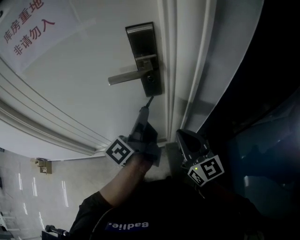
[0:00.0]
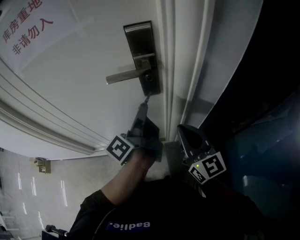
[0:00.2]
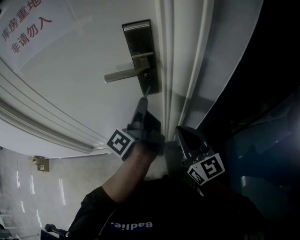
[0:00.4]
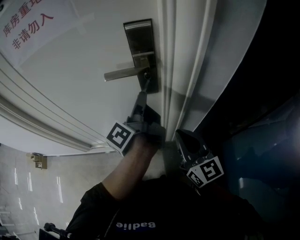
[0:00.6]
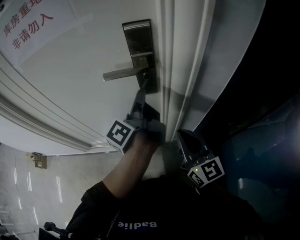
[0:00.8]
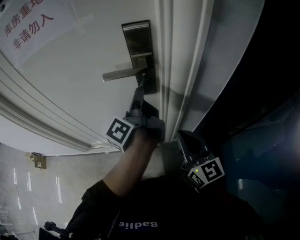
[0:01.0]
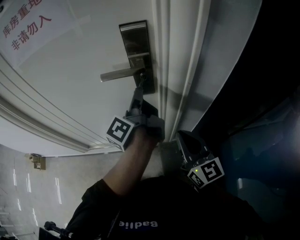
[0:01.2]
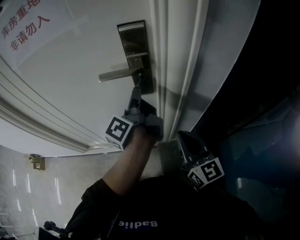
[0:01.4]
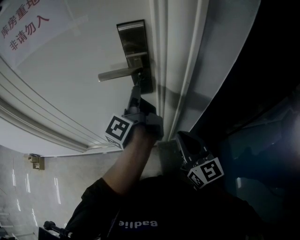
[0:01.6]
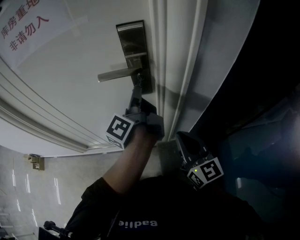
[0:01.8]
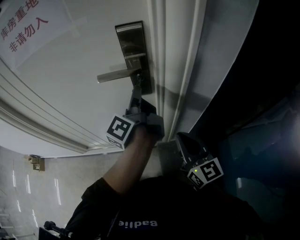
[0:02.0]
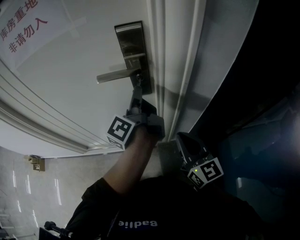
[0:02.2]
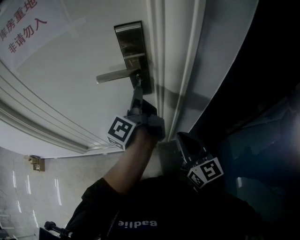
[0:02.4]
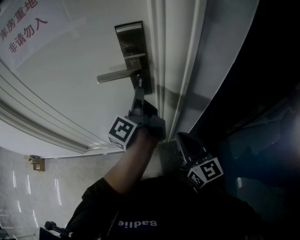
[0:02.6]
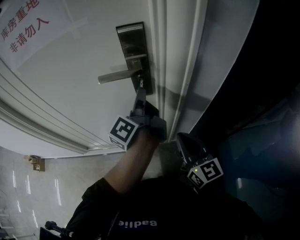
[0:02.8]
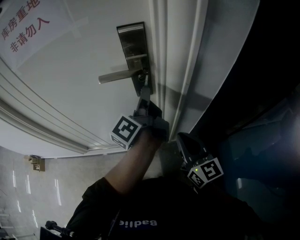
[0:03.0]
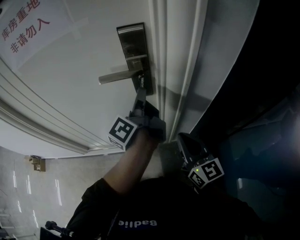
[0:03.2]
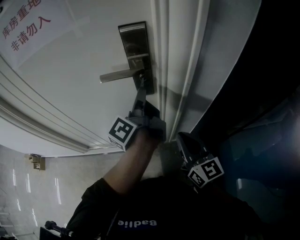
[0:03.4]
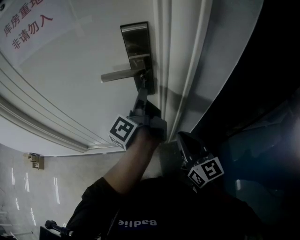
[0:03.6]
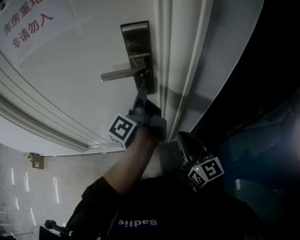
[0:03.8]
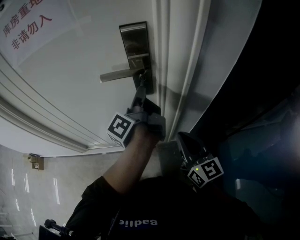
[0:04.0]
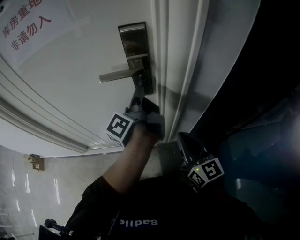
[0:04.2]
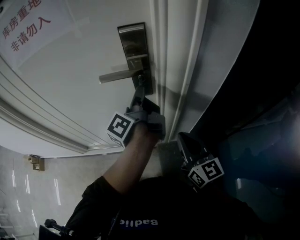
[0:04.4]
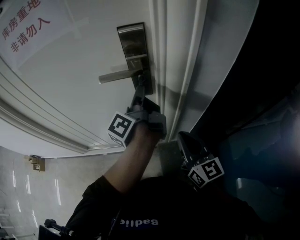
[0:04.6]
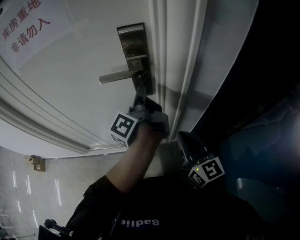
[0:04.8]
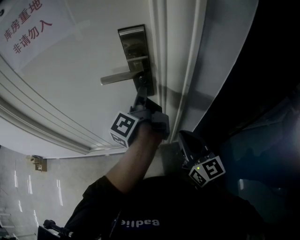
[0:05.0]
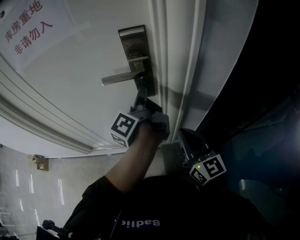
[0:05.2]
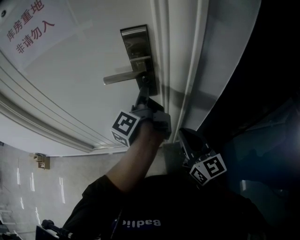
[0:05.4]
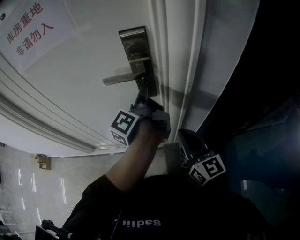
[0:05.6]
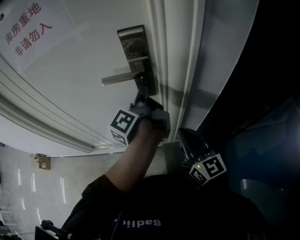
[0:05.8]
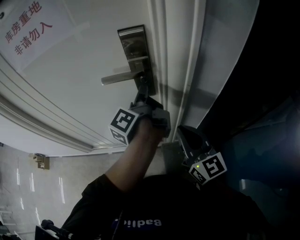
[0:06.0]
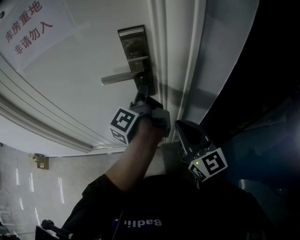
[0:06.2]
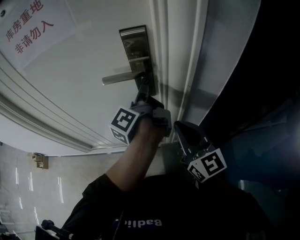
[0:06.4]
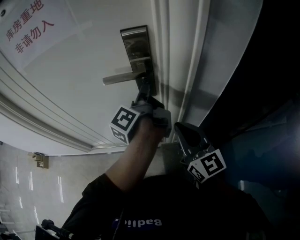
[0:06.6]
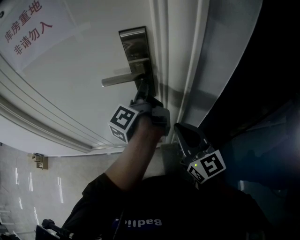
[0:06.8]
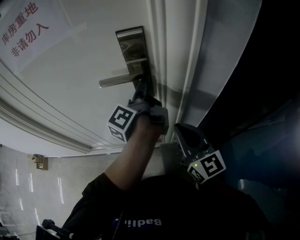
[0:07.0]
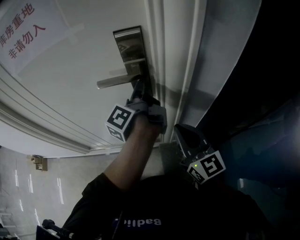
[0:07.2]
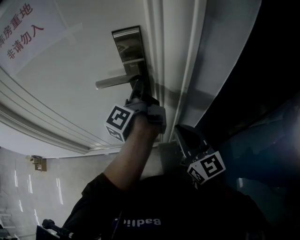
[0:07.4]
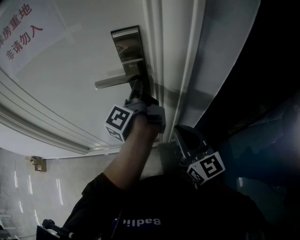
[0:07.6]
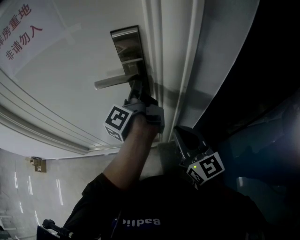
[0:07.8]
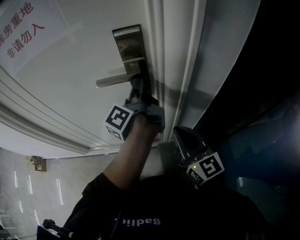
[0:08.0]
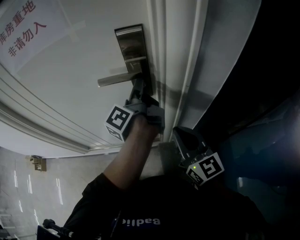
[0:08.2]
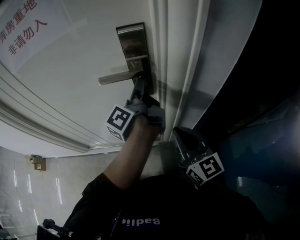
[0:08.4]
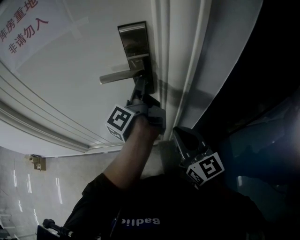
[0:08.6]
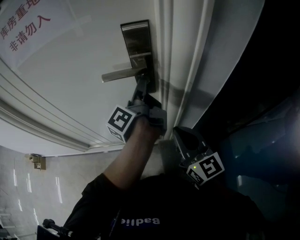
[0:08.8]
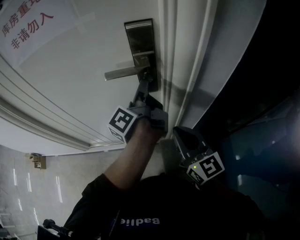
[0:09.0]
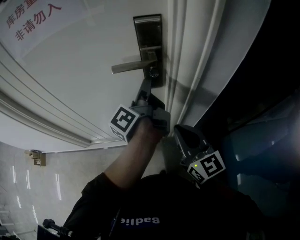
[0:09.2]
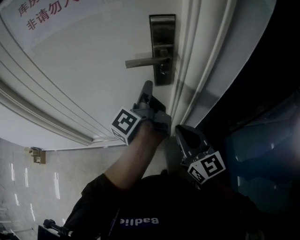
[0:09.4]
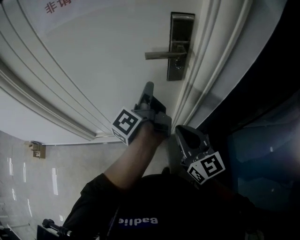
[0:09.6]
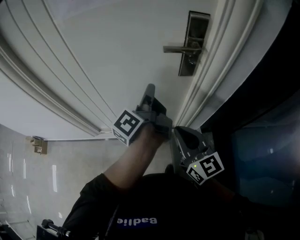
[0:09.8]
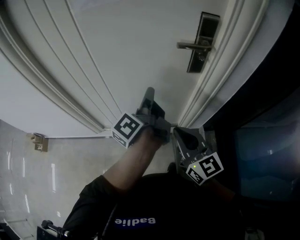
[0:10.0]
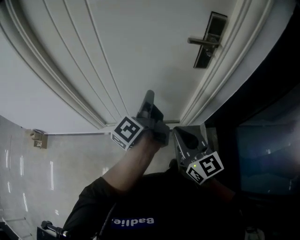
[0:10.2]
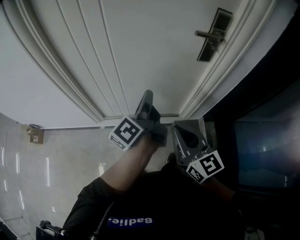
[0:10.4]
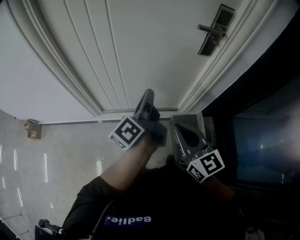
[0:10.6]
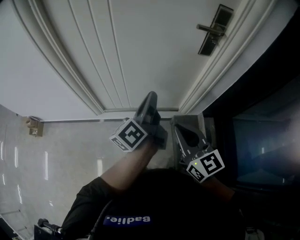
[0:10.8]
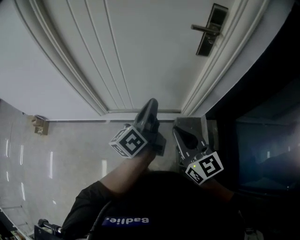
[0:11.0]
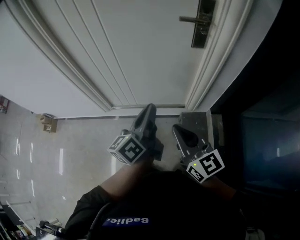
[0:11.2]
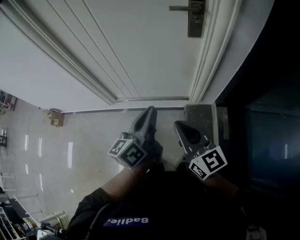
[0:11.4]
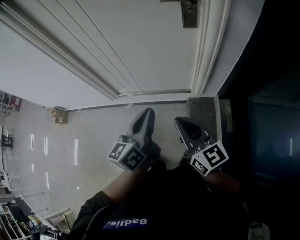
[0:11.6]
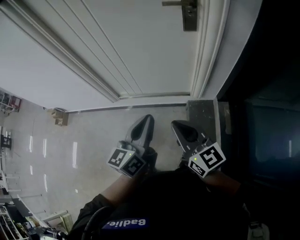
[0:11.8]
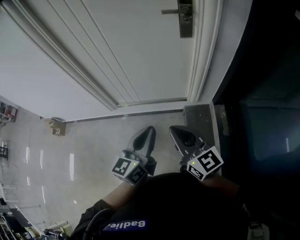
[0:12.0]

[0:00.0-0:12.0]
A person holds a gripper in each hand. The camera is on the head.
0:00.0 to 0:01.6: The left gripper shifts approximately 5 cm forward.
0:01.6 to 0:06.0: The grippers move only a little.
0:06.0 to 0:07.6: The grippers stay close to where they were, moving slightly.
0:07.6 to 0:09.0: The left gripper opens its fingers.
0:09.0 to 0:10.4: Both grippers travel together to the left and backward, about 35 cm. The left gripper closes up.
0:10.4 to 0:12.0: The left gripper shifts about 30 cm backward, and rolls clockwise, seen from behind, by about 50 degrees; the right gripper goes about 15 cm backward.

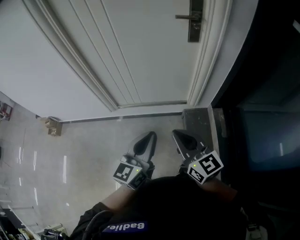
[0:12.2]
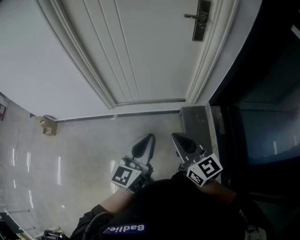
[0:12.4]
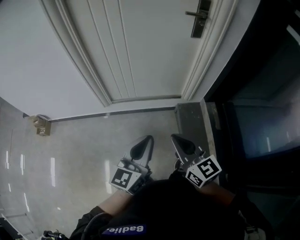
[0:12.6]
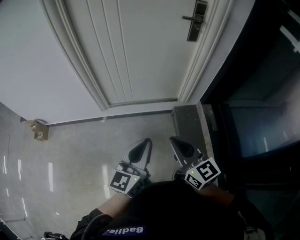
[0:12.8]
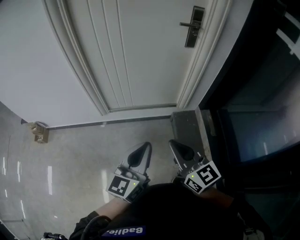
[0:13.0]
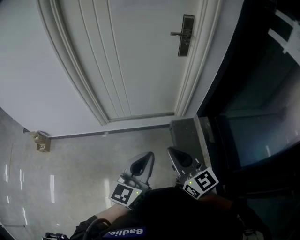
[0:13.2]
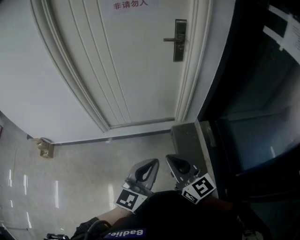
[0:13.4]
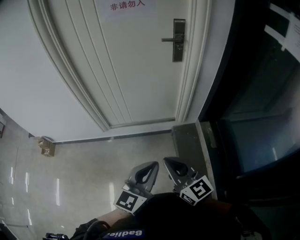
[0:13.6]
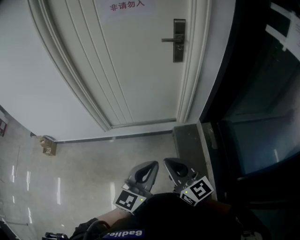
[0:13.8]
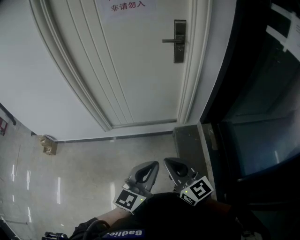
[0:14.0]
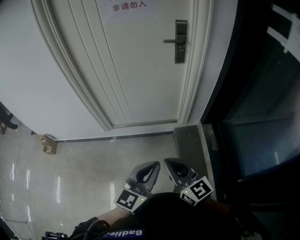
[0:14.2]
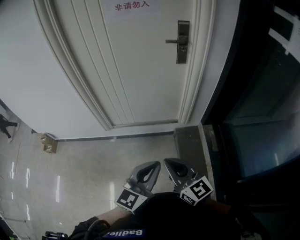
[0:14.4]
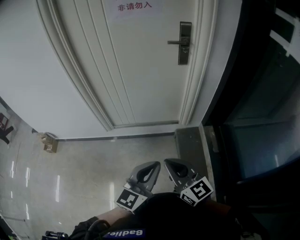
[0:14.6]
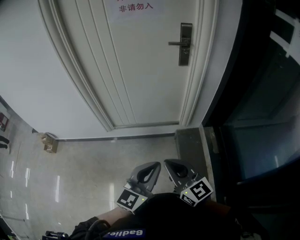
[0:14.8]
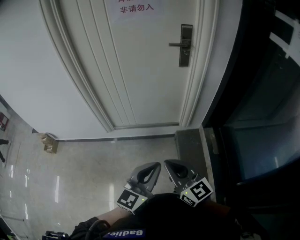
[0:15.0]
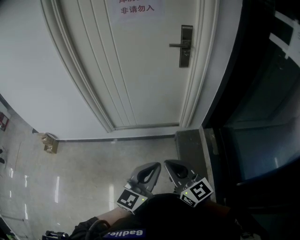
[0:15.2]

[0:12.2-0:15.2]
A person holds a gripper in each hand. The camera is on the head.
0:12.2 to 0:13.8: Both grippers travel together backward, roughly 10 cm. The right gripper goes to the left and returns, approximately 10 cm each way, while the left gripper goes to the left and returns, roughly 10 cm each way.
0:13.8 to 0:15.2: The grippers move only a little.

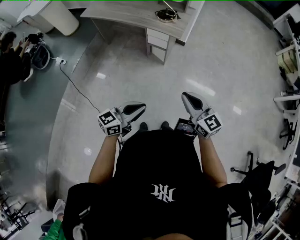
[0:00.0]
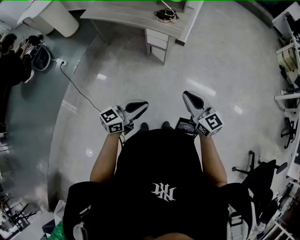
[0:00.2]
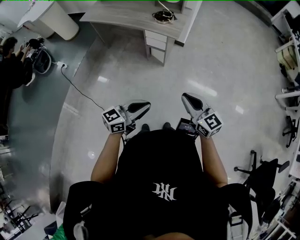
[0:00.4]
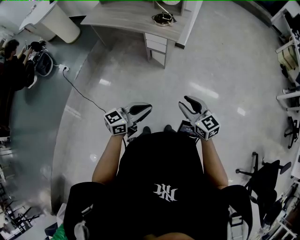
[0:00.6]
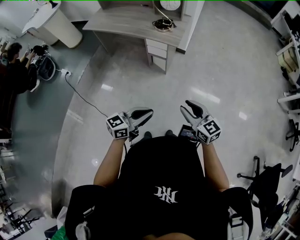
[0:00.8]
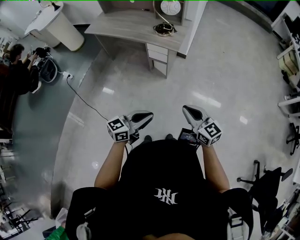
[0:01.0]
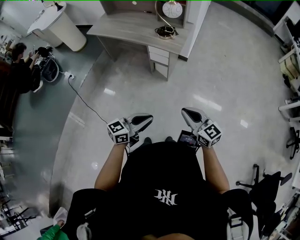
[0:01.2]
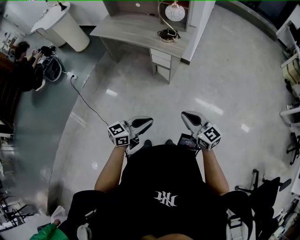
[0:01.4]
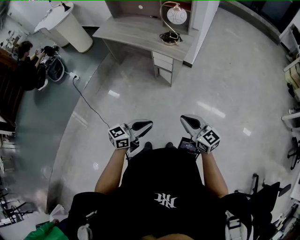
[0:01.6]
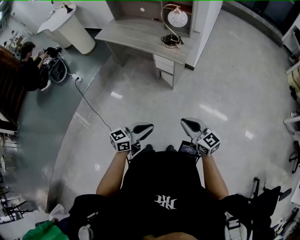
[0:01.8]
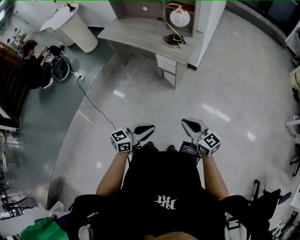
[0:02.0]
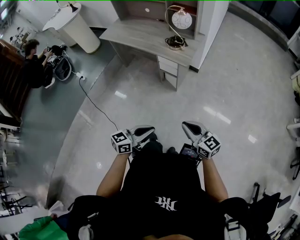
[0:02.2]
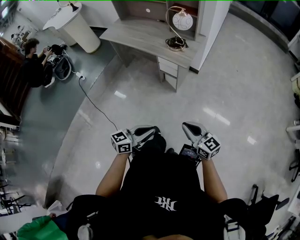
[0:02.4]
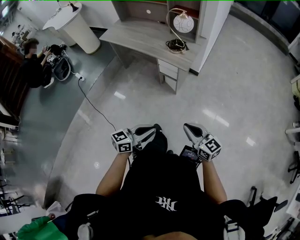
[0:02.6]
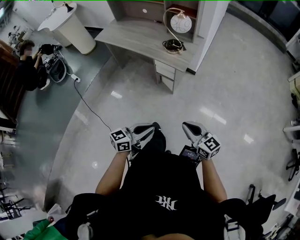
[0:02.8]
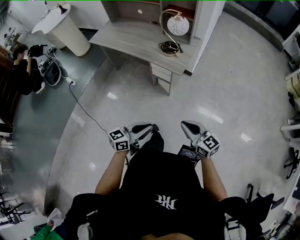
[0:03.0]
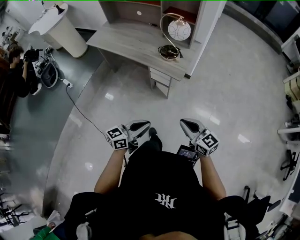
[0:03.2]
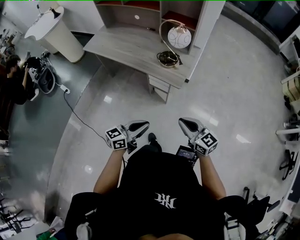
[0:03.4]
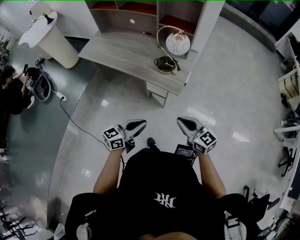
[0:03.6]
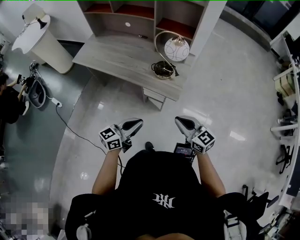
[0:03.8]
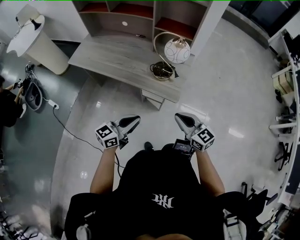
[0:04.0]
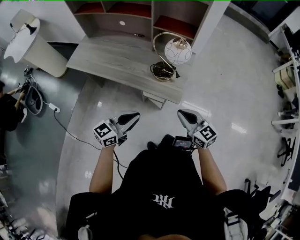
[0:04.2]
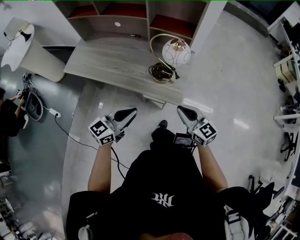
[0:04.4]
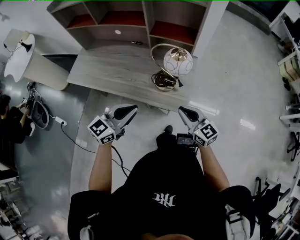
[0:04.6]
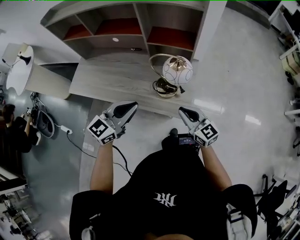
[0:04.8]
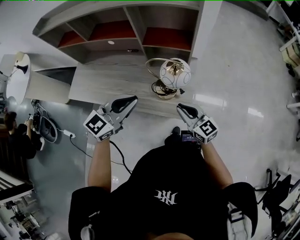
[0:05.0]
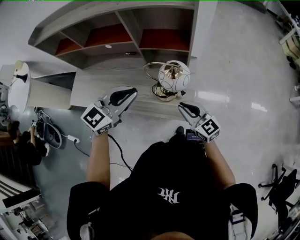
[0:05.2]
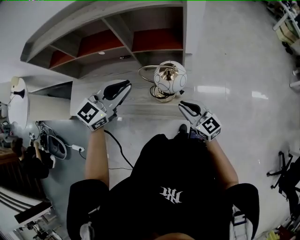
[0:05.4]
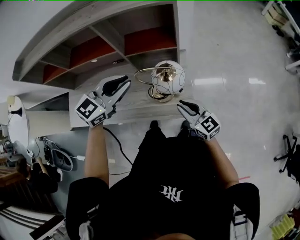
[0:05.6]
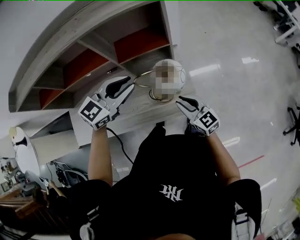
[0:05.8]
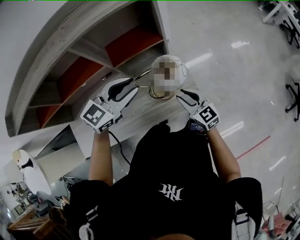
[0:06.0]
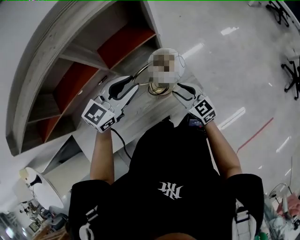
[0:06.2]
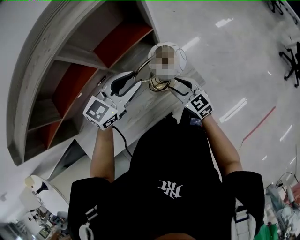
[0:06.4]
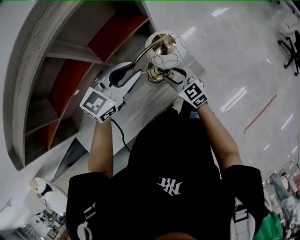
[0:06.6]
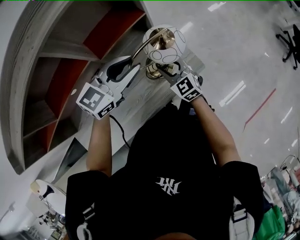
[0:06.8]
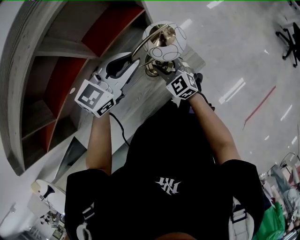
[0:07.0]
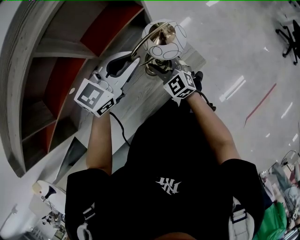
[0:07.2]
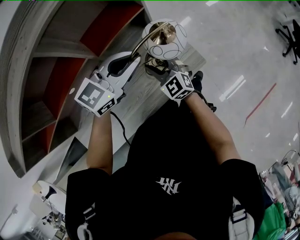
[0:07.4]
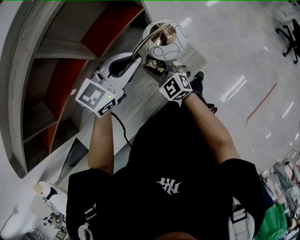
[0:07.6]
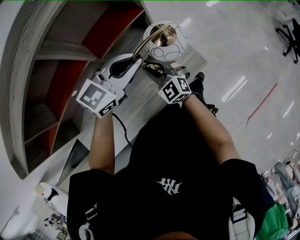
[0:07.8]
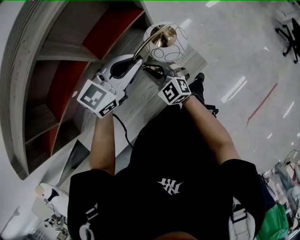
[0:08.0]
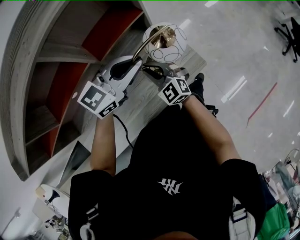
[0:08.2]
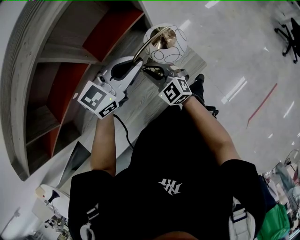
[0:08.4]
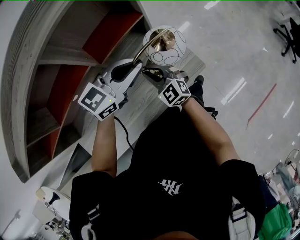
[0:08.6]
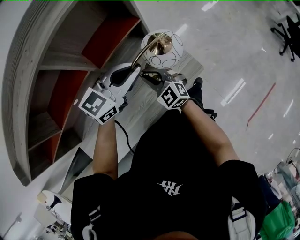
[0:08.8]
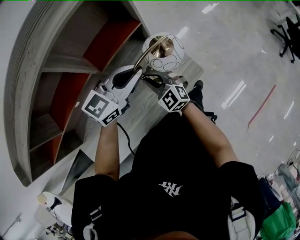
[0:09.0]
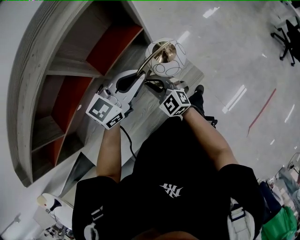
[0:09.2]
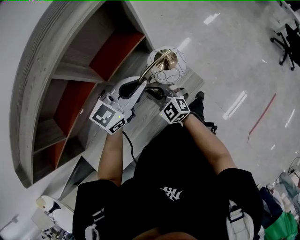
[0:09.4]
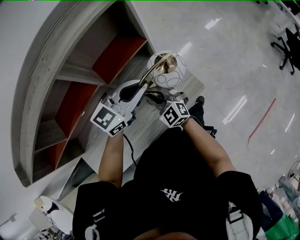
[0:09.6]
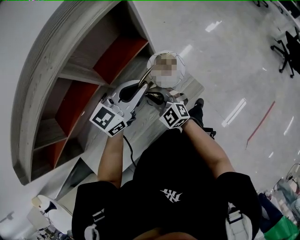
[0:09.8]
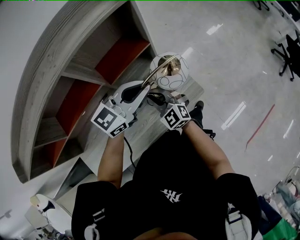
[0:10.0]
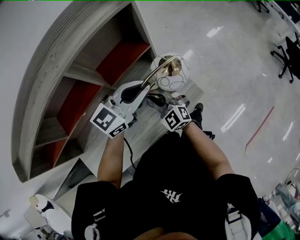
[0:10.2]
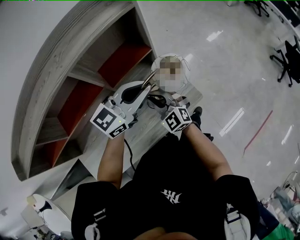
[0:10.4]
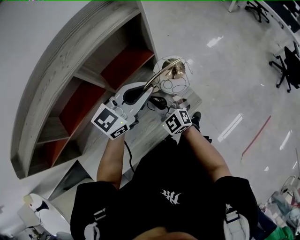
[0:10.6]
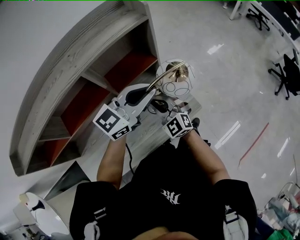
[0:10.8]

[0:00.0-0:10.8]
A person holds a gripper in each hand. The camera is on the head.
0:00.0 to 0:01.6: The left gripper shifts some 5 cm to the right, while the right gripper opens, then closes again.
0:01.6 to 0:03.0: The two grippers go about 10 cm forward.
0:03.0 to 0:04.6: Both grippers travel together forward, roughly 40 cm. The left gripper turns by approximately 20 degrees.
0:04.6 to 0:06.2: The right gripper moves some 15 cm, rotates approximately 40 degrees, and opens up, while the left gripper moves approximately 10 cm upward and comes back, changes its angle by roughly 50 degrees, and opens up.
0:06.2 to 0:07.8: The left gripper closes its fingers; the right gripper moves to the left, about 15 cm, and swivels about 30 degrees.
0:07.8 to 0:09.2: Neither gripper changes place.
0:09.2 to 0:10.8: The grippers both shift upward by roughly 10 cm.
